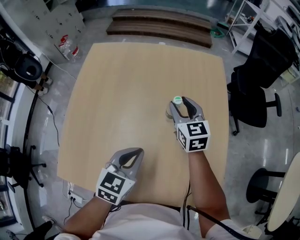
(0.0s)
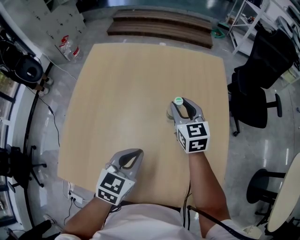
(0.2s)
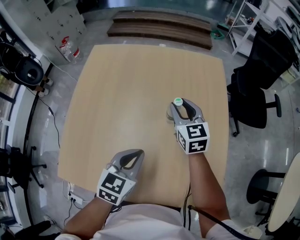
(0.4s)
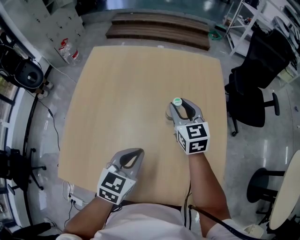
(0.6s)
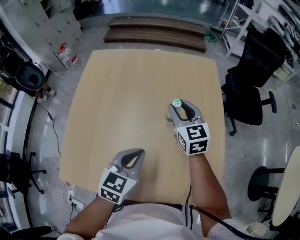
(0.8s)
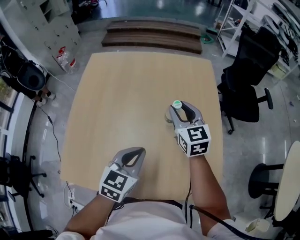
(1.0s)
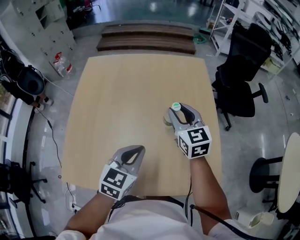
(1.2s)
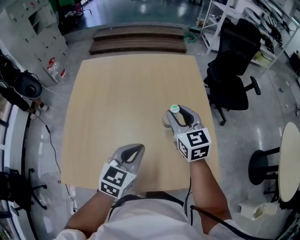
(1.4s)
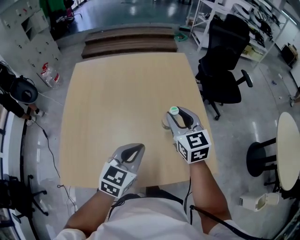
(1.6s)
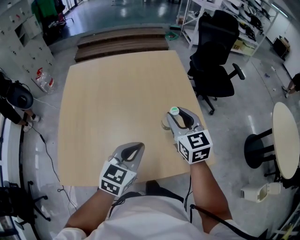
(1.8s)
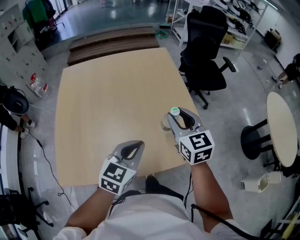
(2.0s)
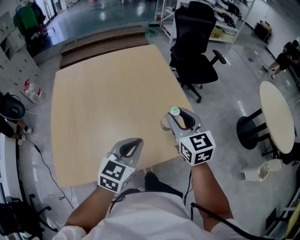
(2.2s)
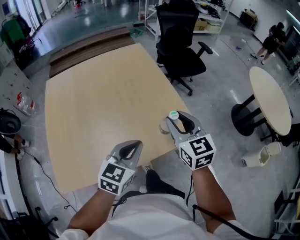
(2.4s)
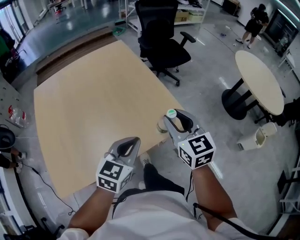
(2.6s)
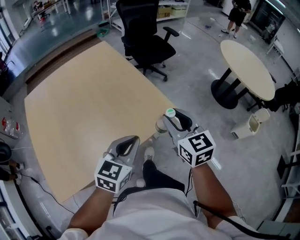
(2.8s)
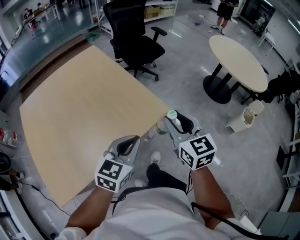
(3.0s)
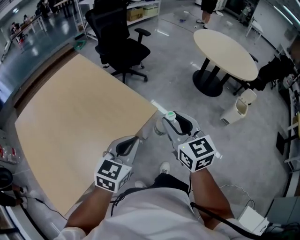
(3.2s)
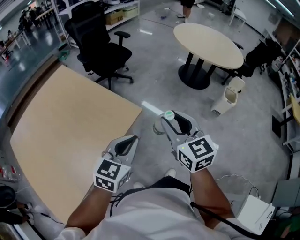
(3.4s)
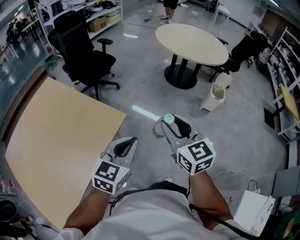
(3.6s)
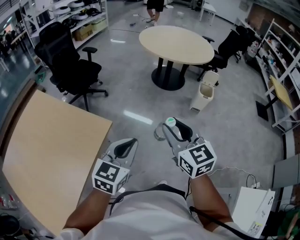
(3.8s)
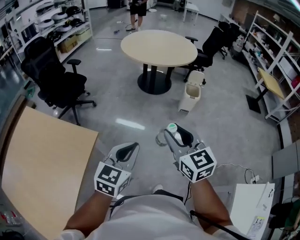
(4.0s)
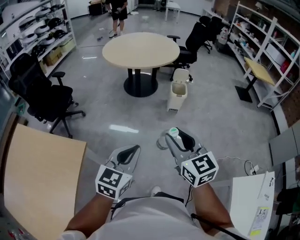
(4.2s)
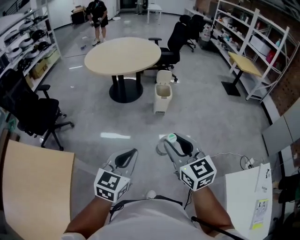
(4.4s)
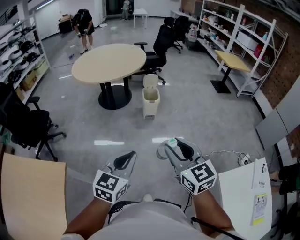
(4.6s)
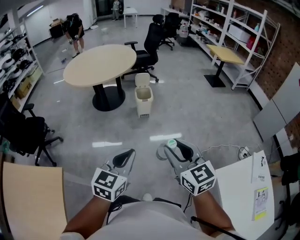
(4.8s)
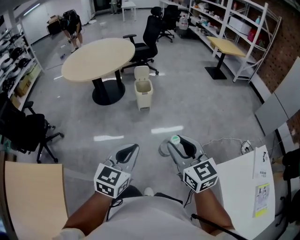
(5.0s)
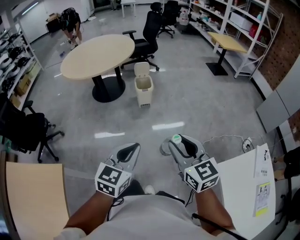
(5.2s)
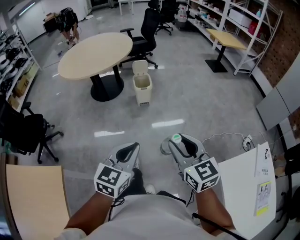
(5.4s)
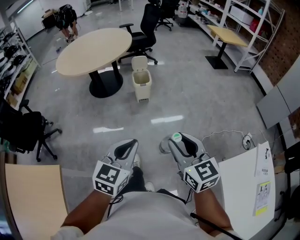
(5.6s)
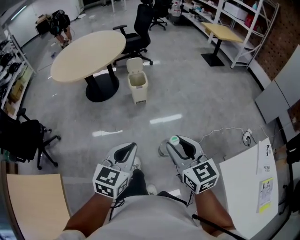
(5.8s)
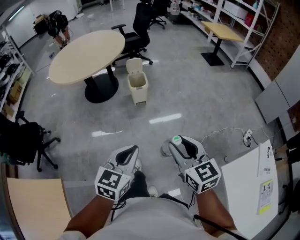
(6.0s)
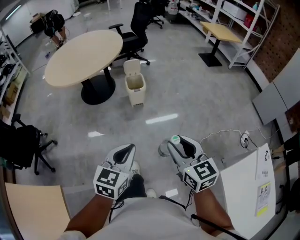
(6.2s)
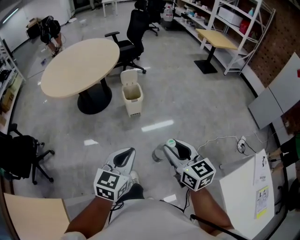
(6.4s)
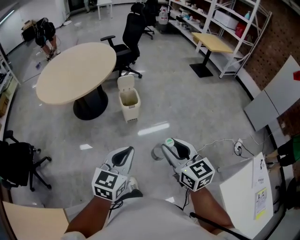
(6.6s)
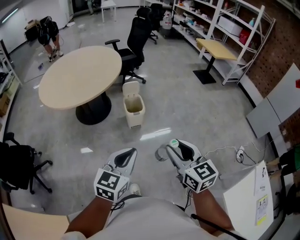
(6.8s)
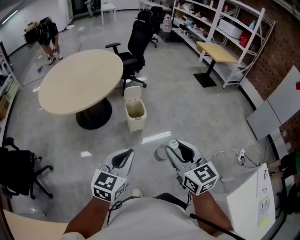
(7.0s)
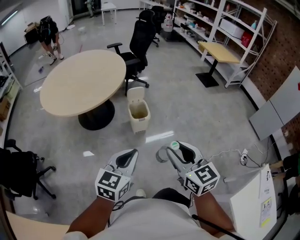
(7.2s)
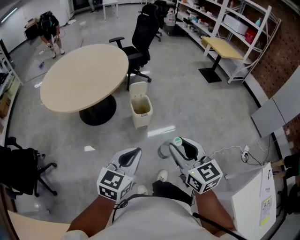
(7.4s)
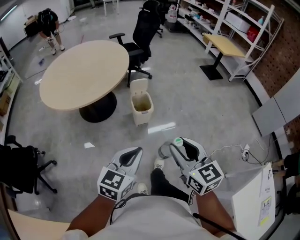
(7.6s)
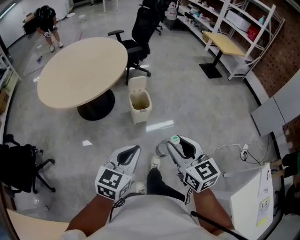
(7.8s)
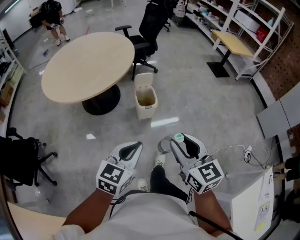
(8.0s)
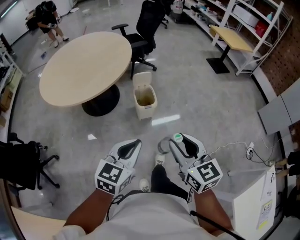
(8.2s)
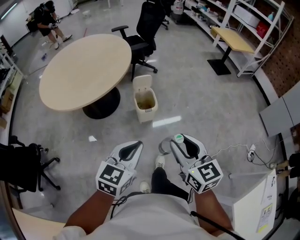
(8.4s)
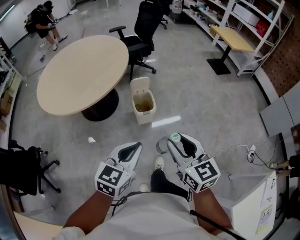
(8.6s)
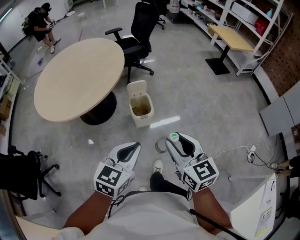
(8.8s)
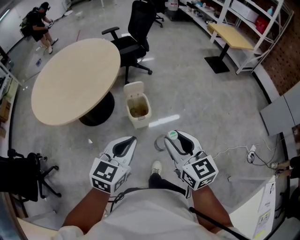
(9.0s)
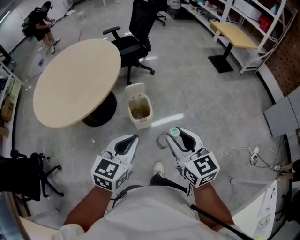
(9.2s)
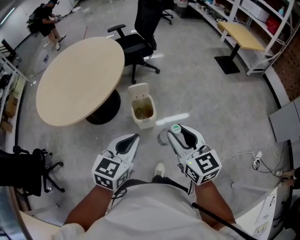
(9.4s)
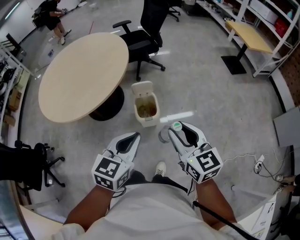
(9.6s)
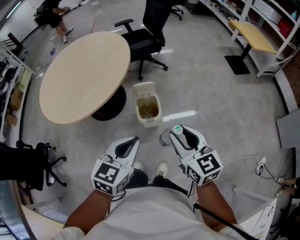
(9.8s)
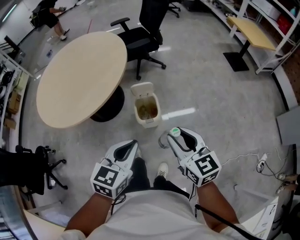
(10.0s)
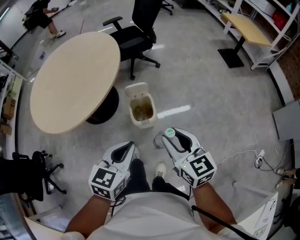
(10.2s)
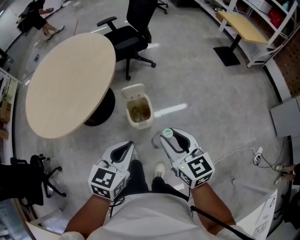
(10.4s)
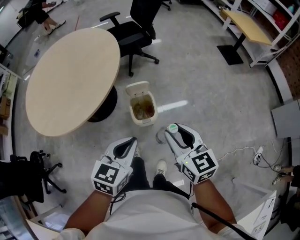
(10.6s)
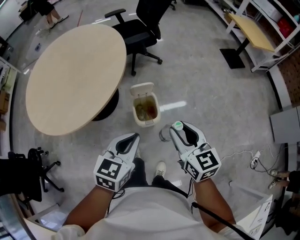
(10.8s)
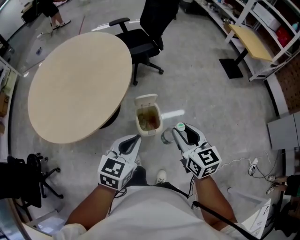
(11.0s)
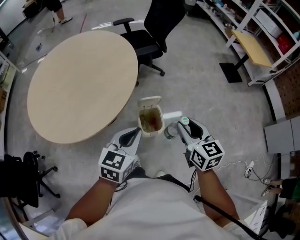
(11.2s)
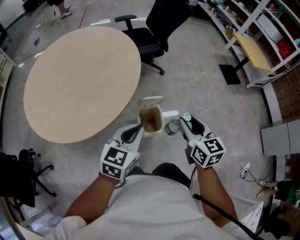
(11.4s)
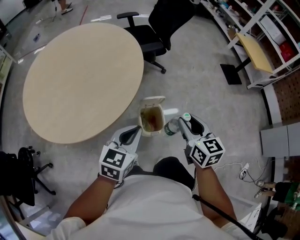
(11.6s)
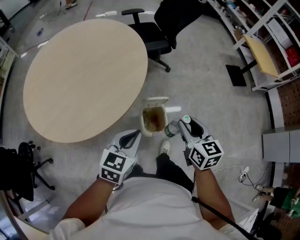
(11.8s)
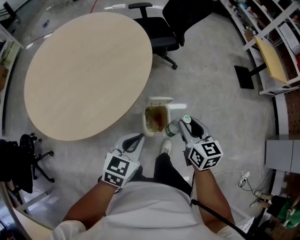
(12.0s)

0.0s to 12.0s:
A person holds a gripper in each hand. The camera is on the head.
0.0s to 1.6s: The left gripper moves backward, approximately 5 cm; the right gripper moves backward and upward, approximately 20 cm.
1.6s to 3.0s: The left gripper changes place by some 20 cm, and turns by some 30 degrees; the right gripper moves roughly 35 cm, and changes its angle by some 30 degrees.
3.0s to 4.4s: The left gripper moves roughly 40 cm, and swivels about 50 degrees. Meanwhile the right gripper ends up some 40 cm from where it was, and swivels about 40 degrees.
4.4s to 6.0s: The right gripper shifts roughly 15 cm to the right, downward and forward; the left gripper goes some 15 cm to the right and forward.
6.0s to 7.6s: The two grippers go some 25 cm forward and to the left.
7.6s to 9.0s: Both grippers move forward, roughly 15 cm.
9.0s to 10.4s: The two grippers go roughly 10 cm forward and downward.
10.4s to 12.0s: The right gripper travels forward by roughly 20 cm; the left gripper goes some 15 cm forward, to the left and downward.

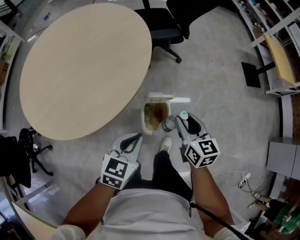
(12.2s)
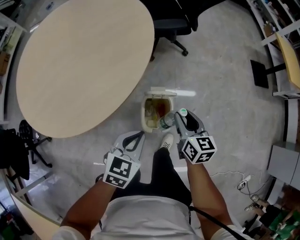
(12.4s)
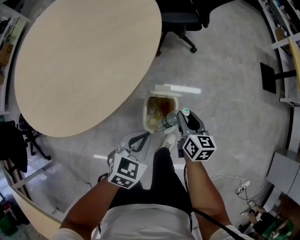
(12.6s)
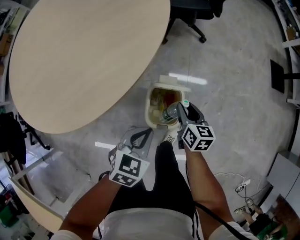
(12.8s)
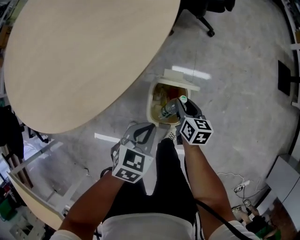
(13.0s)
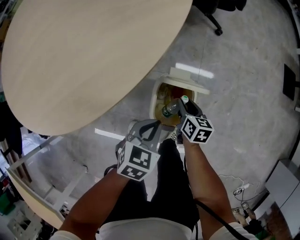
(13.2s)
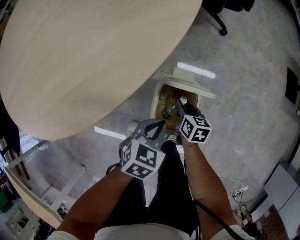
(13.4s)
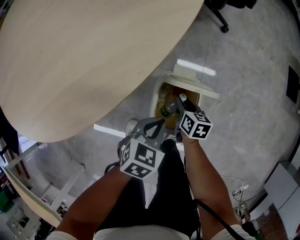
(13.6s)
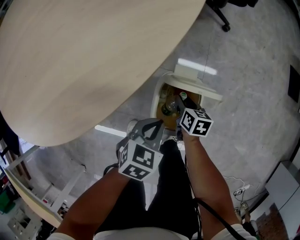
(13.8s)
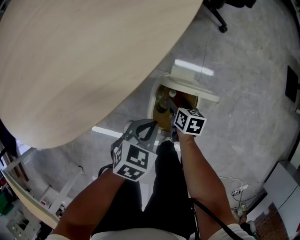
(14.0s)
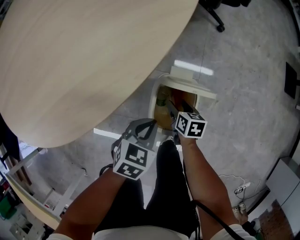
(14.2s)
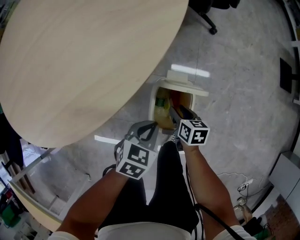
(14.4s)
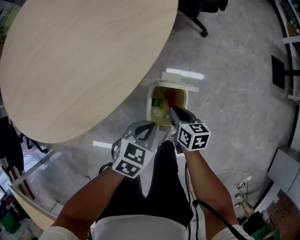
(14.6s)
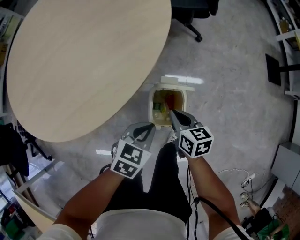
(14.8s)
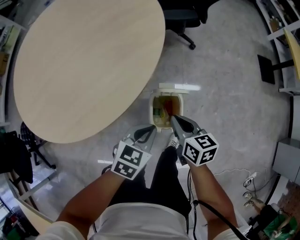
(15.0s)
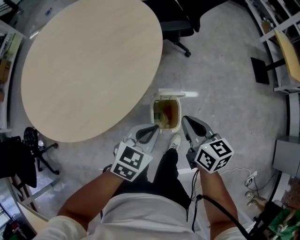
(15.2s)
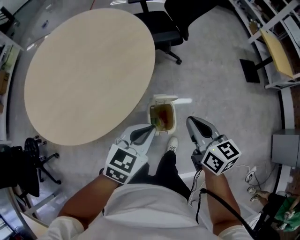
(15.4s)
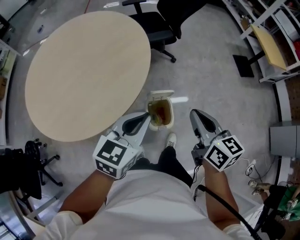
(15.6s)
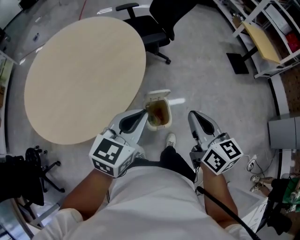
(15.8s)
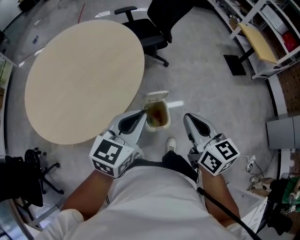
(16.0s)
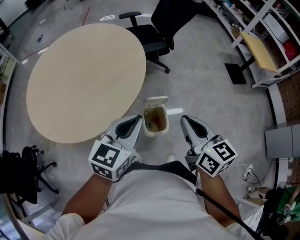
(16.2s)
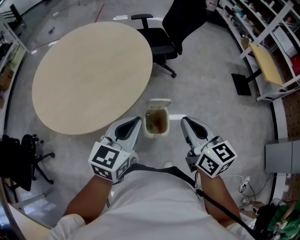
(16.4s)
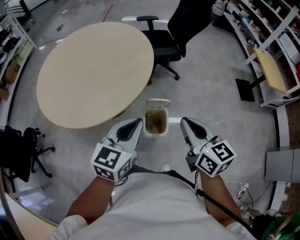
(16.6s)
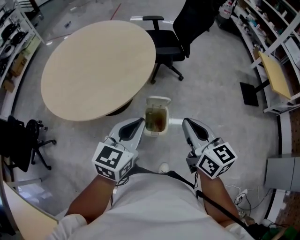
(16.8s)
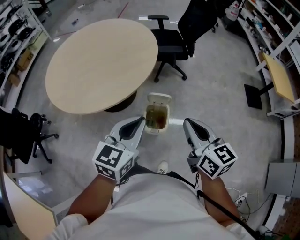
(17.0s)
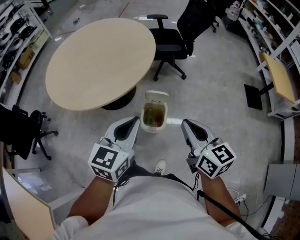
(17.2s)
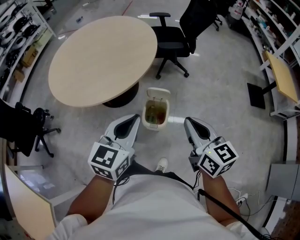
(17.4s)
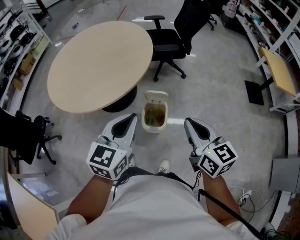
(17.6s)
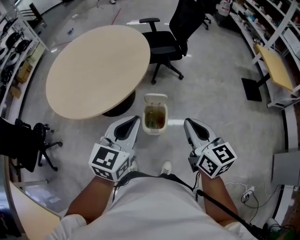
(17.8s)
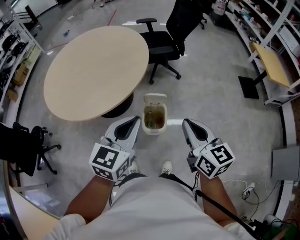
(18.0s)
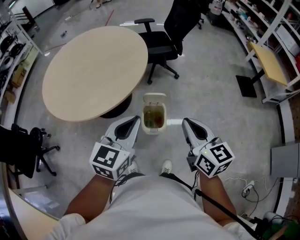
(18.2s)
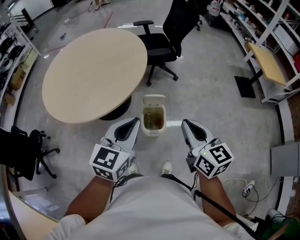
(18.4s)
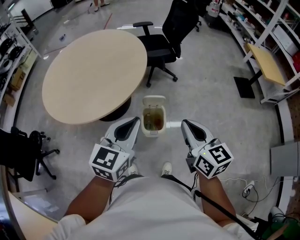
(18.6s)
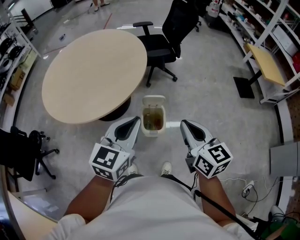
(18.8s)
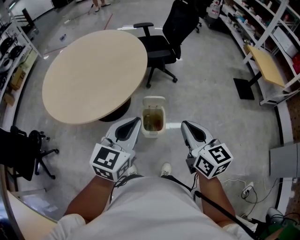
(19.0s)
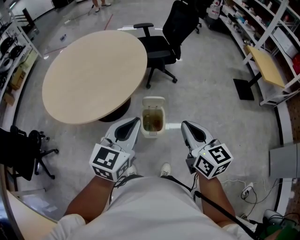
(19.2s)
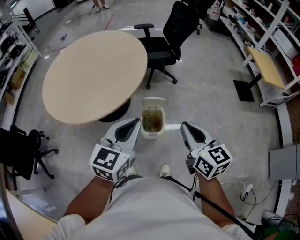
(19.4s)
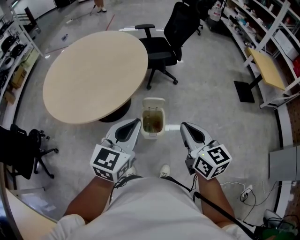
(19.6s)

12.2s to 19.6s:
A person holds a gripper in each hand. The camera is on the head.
12.2s to 13.6s: Both grippers move downward, approximately 35 cm. The right gripper changes its angle by some 30 degrees.
13.6s to 15.2s: The left gripper is displaced upward by about 25 cm, and changes its angle by approximately 20 degrees. The right gripper is displaced upward by approximately 40 cm, turns by roughly 20 degrees, and closes its fingers.
15.2s to 16.6s: The right gripper travels upward and backward by some 20 cm. Meanwhile the left gripper moves upward, approximately 15 cm, and rotates some 30 degrees.
16.6s to 18.2s: The left gripper changes place by approximately 5 cm; the right gripper is displaced backward by about 5 cm.
18.2s to 19.6s: Neither gripper changes place.

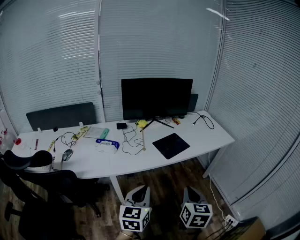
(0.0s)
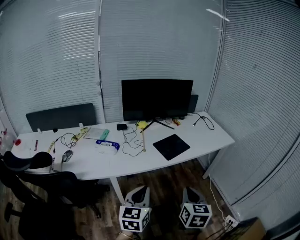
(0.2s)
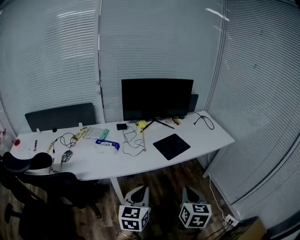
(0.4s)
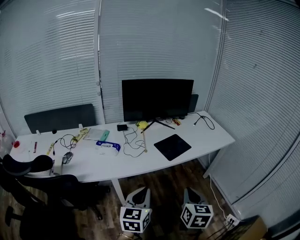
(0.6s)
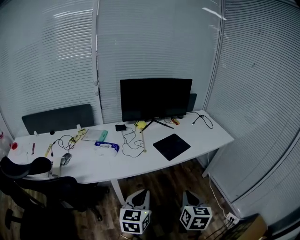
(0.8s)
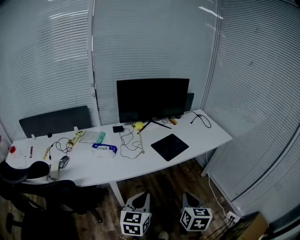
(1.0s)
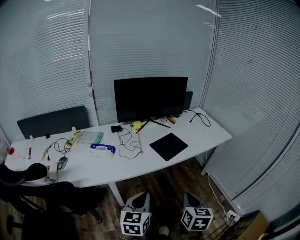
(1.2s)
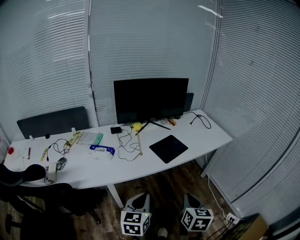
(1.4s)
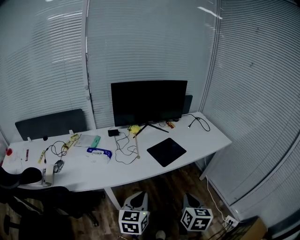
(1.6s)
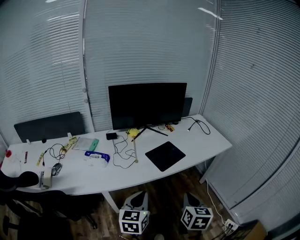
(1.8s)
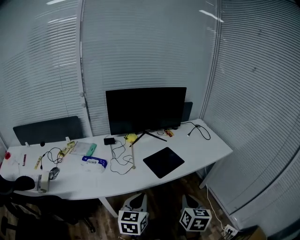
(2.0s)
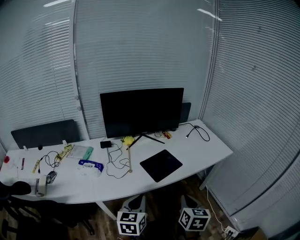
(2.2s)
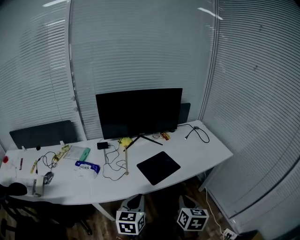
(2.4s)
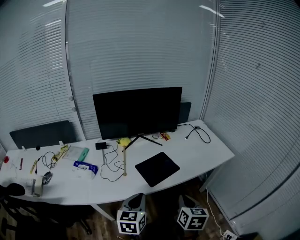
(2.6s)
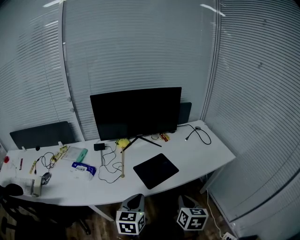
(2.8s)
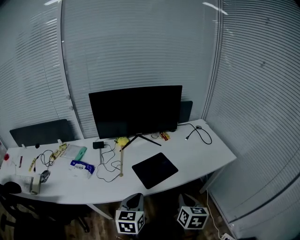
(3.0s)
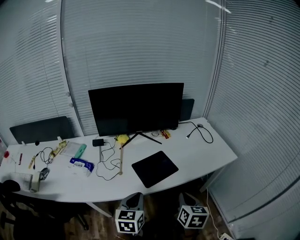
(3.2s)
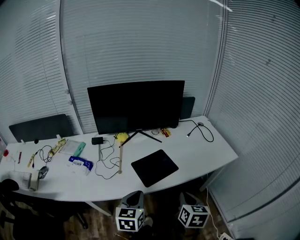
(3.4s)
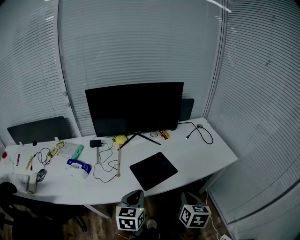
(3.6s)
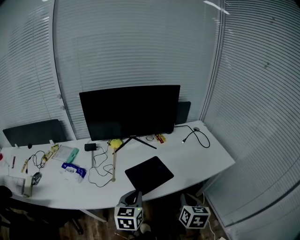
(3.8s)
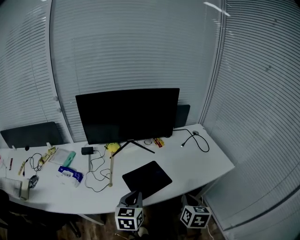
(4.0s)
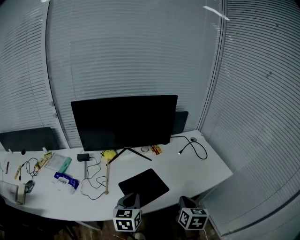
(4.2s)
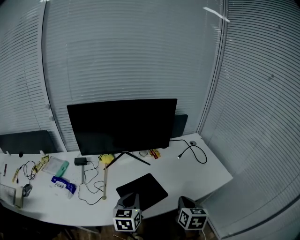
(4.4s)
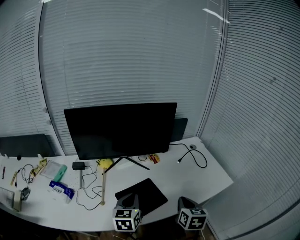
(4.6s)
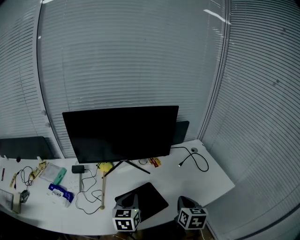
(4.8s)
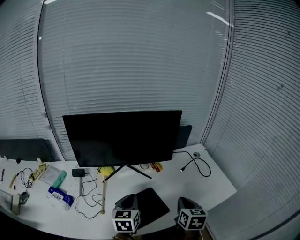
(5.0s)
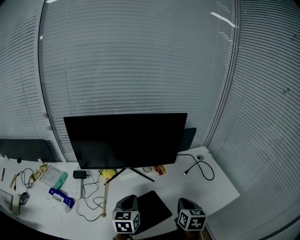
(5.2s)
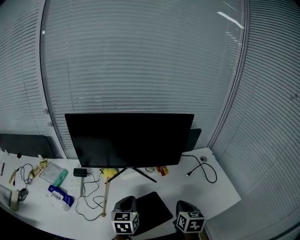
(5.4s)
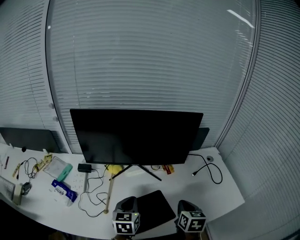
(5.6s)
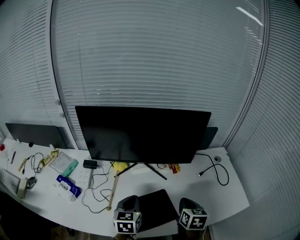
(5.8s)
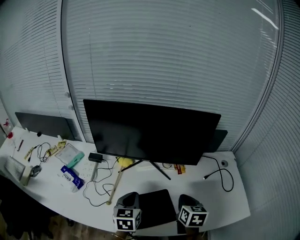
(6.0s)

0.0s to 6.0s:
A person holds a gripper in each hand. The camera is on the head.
0.0s to 1.6s: The right gripper shifts by roughly 5 cm, while the left gripper goes roughly 5 cm forward.
1.6s to 3.0s: Both grippers move forward and to the right, roughly 20 cm.
3.0s to 4.4s: The two grippers go approximately 15 cm forward.
4.4s to 6.0s: The right gripper goes roughly 20 cm forward, and changes its angle by some 20 degrees. The left gripper travels forward and to the left by about 10 cm, and turns by some 20 degrees.
